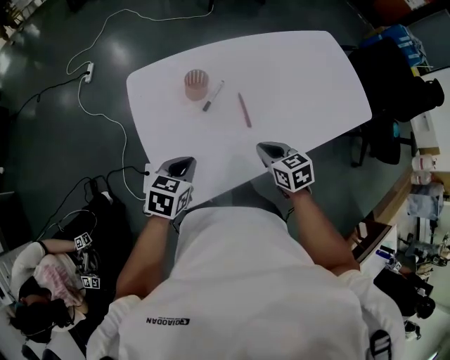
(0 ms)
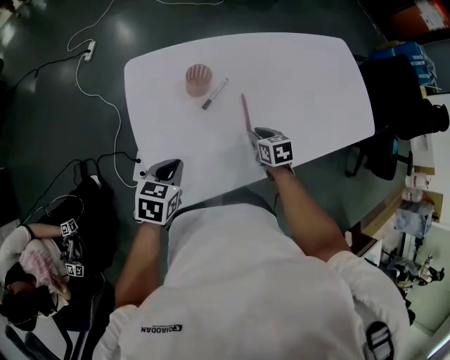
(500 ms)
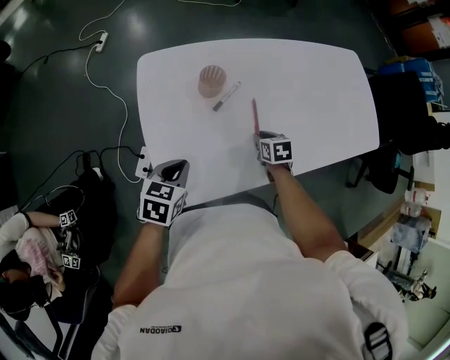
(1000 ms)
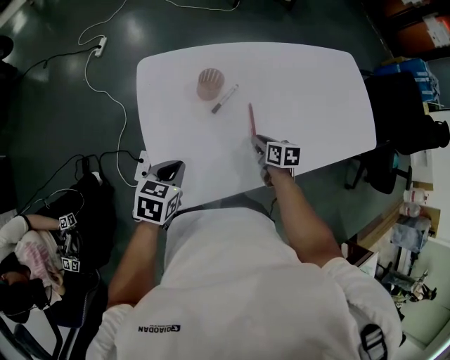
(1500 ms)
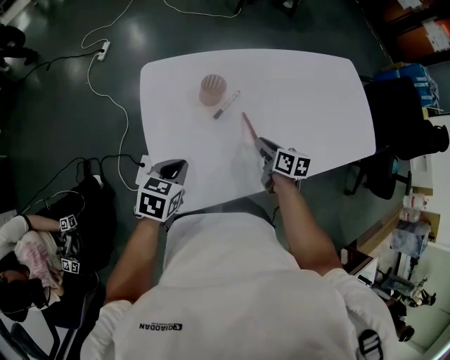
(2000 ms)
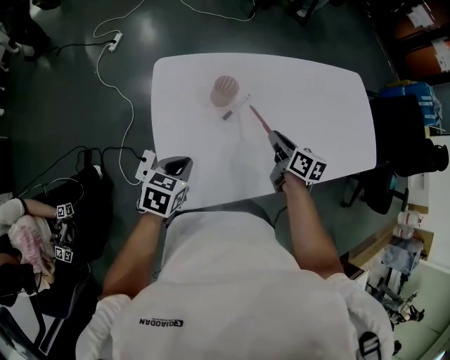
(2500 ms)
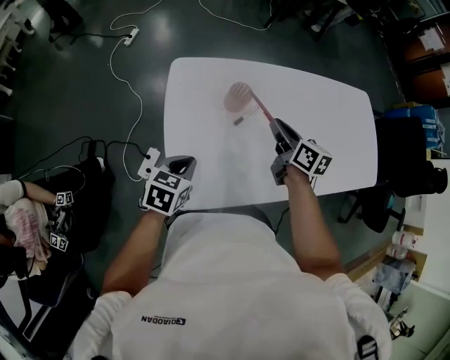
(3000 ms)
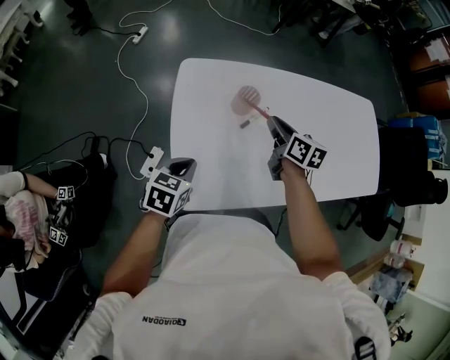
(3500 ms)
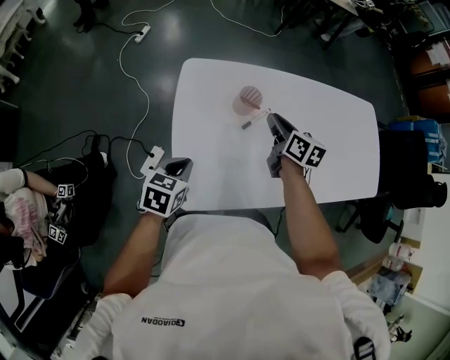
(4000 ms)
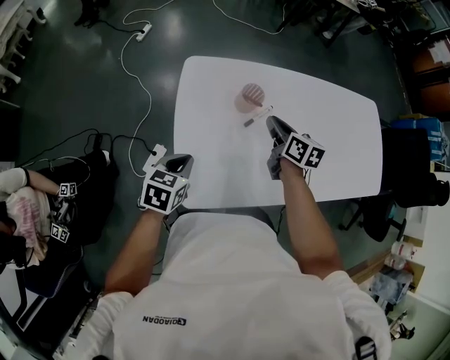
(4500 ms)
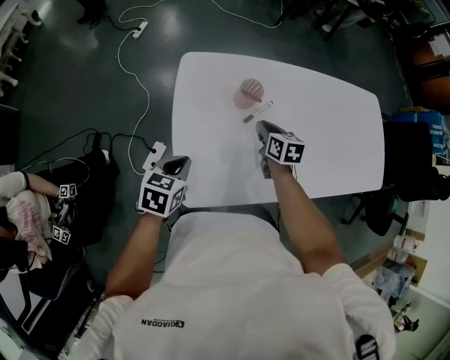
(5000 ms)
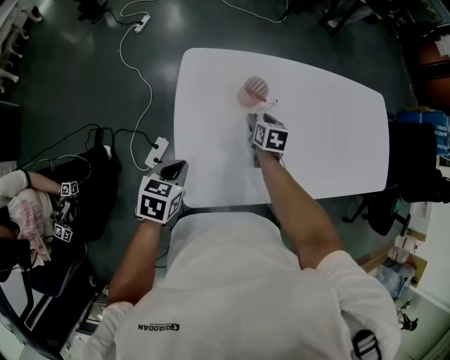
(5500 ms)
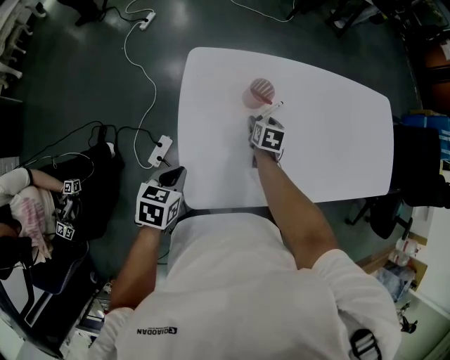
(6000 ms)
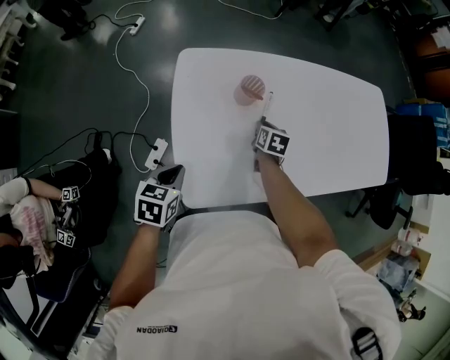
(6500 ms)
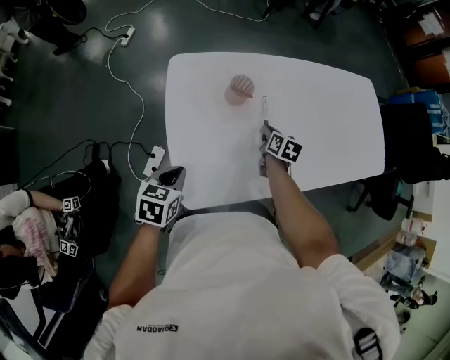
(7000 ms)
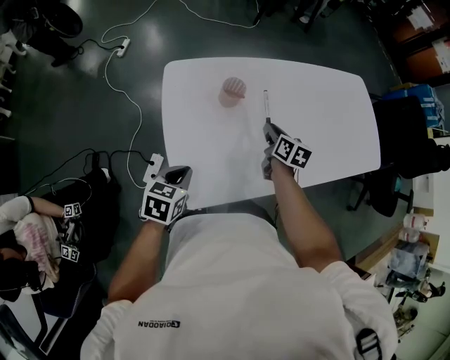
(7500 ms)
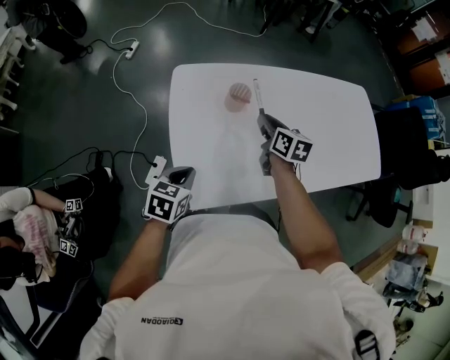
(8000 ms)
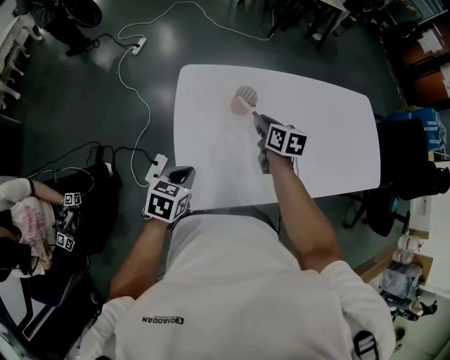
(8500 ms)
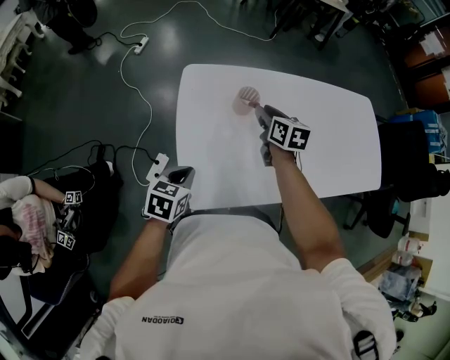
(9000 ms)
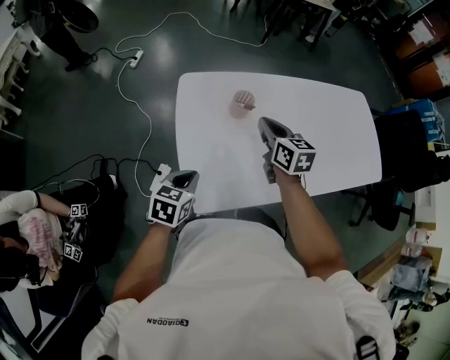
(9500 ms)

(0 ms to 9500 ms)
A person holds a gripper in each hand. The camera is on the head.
0 ms - 2000 ms: The right gripper moves forward, roughly 10 cm, and swivels roughly 30 degrees.
2000 ms - 4000 ms: The left gripper is displaced to the left by some 5 cm; the right gripper moves to the left, upward and forward, about 20 cm.
4000 ms - 5500 ms: The right gripper moves downward, about 15 cm, swivels roughly 20 degrees, and opens up.
5500 ms - 7500 ms: The right gripper shifts about 10 cm to the right and upward, swivels about 20 degrees, and closes up.
7500 ms - 9500 ms: The right gripper travels upward and to the left by about 15 cm, and turns by some 20 degrees.

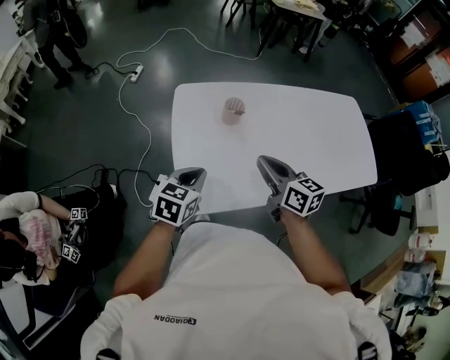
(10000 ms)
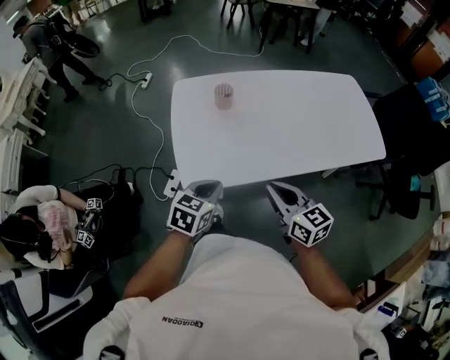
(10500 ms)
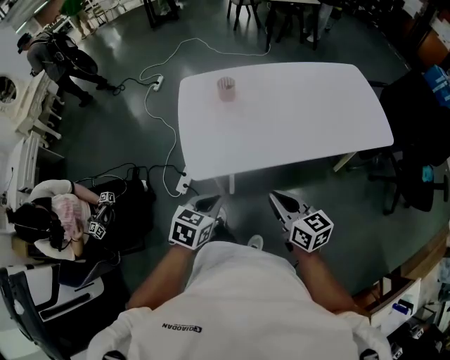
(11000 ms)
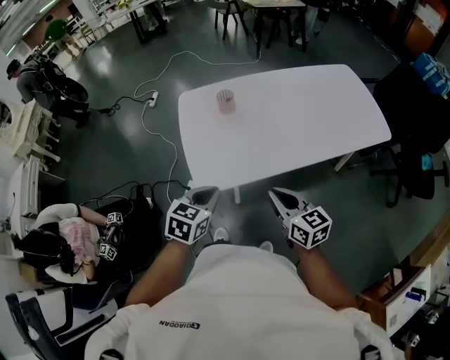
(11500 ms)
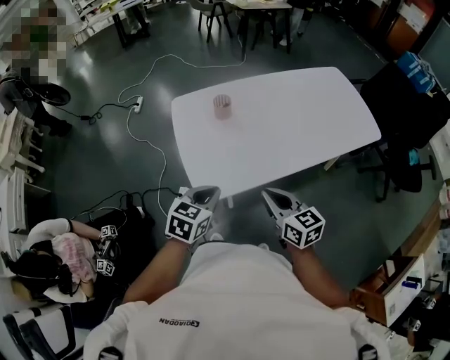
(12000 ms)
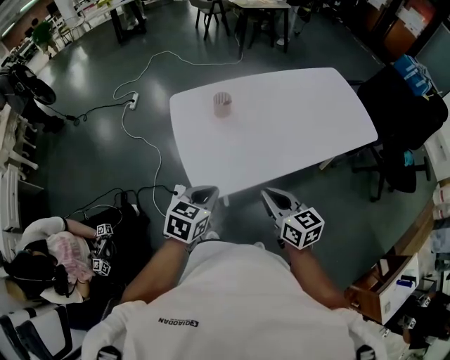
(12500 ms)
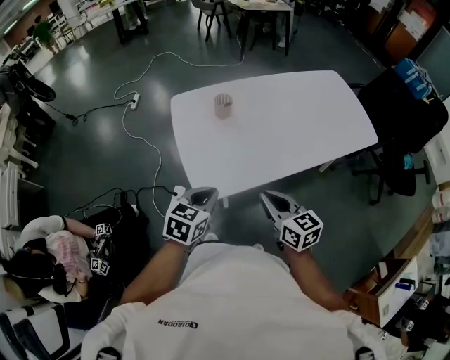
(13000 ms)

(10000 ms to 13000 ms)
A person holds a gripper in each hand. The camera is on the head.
10000 ms - 11500 ms: The right gripper goes some 25 cm backward. The left gripper is displaced backward and to the right by about 20 cm.
11500 ms - 13000 ms: The left gripper shifts by about 5 cm; the right gripper shifts roughly 5 cm to the left.

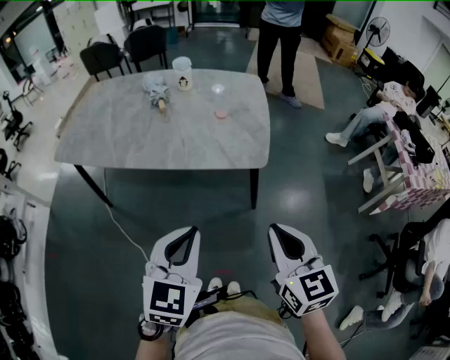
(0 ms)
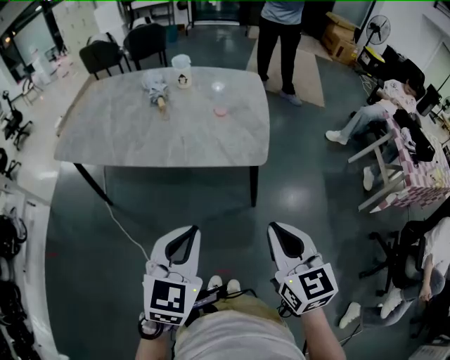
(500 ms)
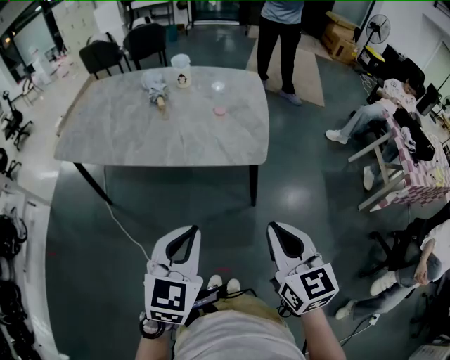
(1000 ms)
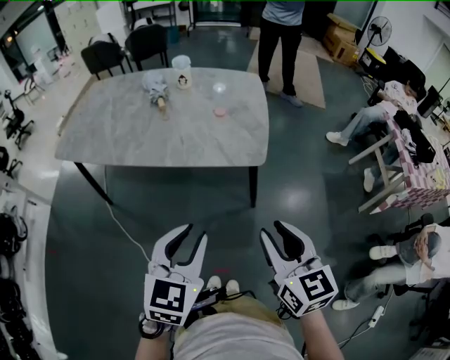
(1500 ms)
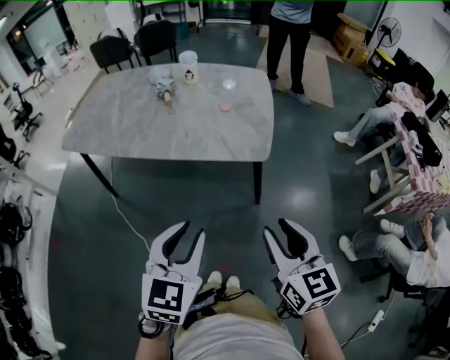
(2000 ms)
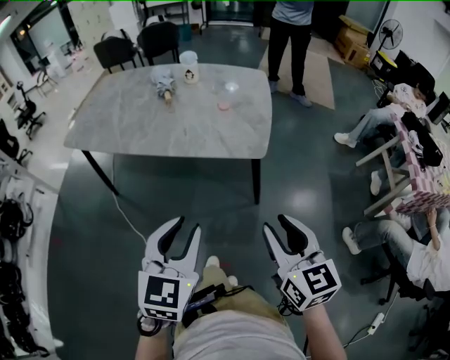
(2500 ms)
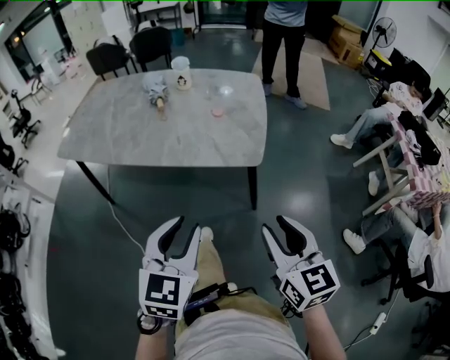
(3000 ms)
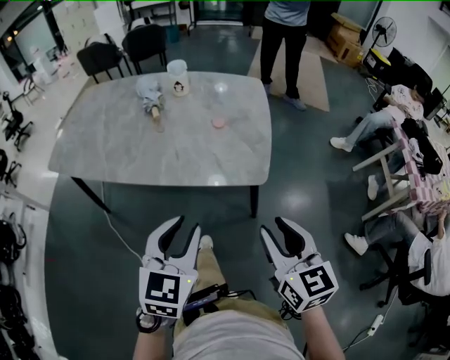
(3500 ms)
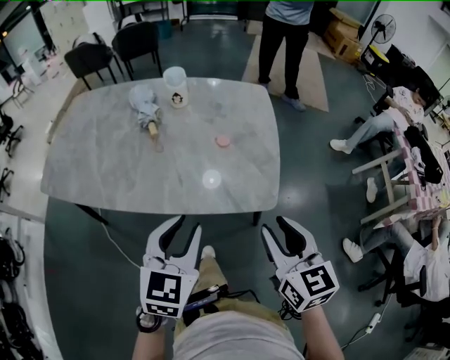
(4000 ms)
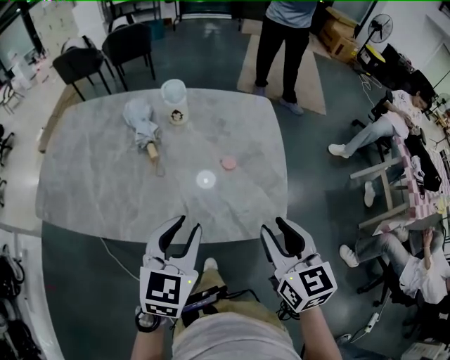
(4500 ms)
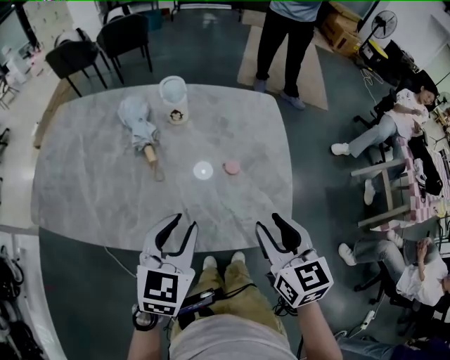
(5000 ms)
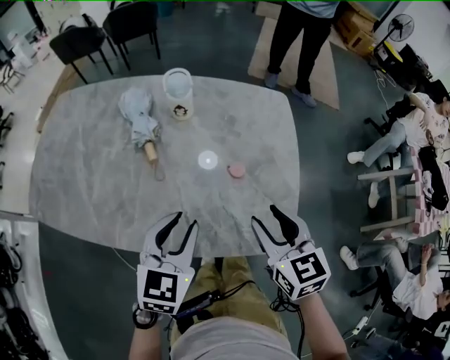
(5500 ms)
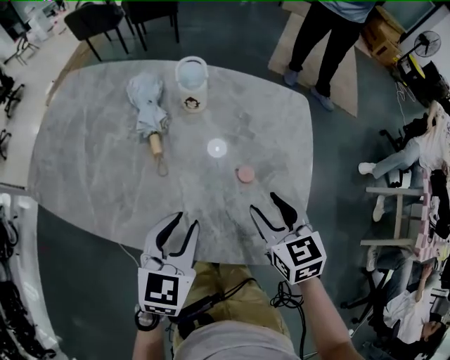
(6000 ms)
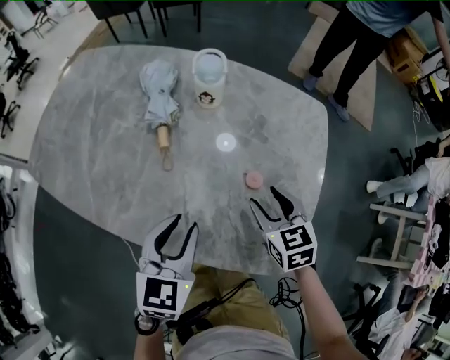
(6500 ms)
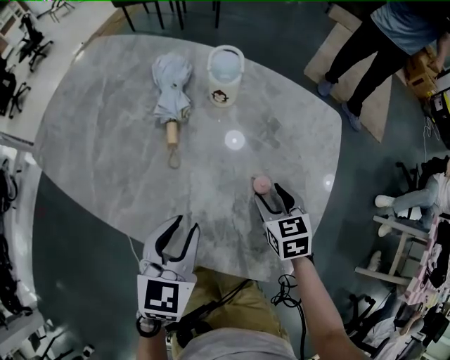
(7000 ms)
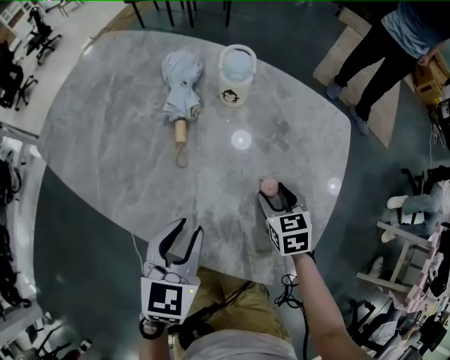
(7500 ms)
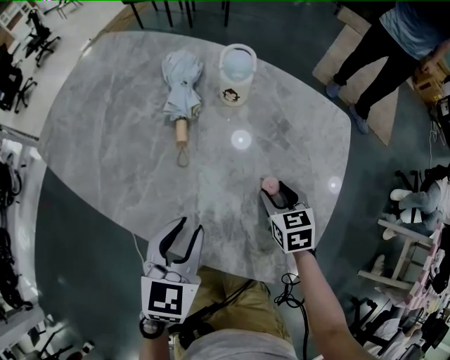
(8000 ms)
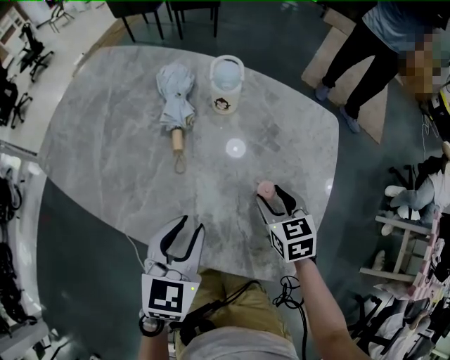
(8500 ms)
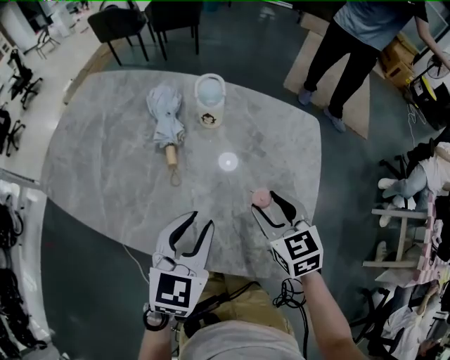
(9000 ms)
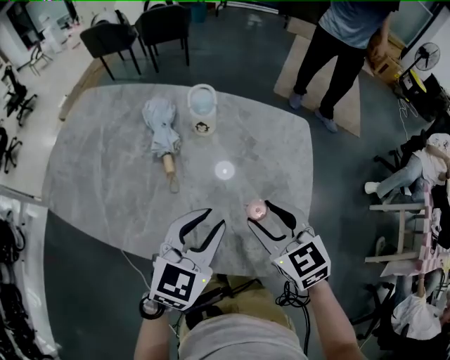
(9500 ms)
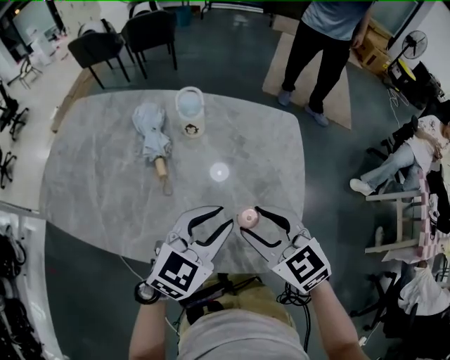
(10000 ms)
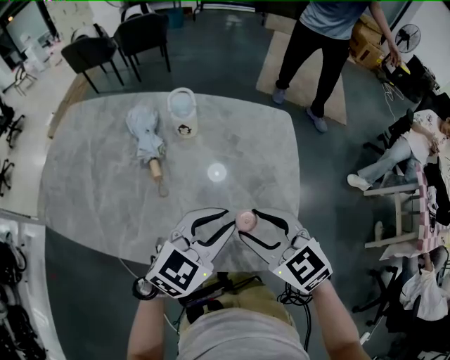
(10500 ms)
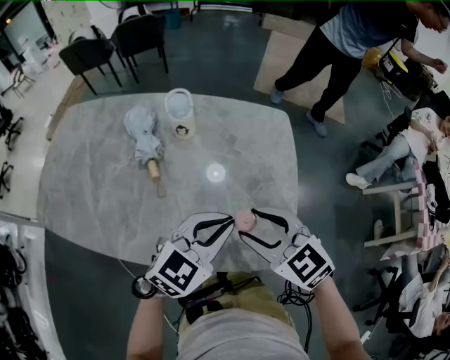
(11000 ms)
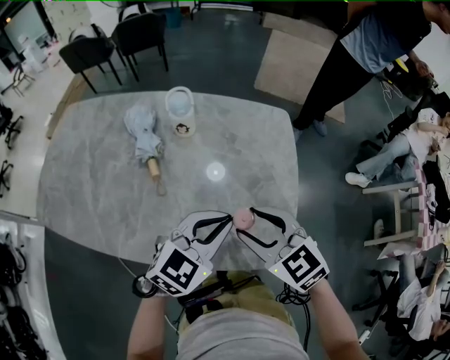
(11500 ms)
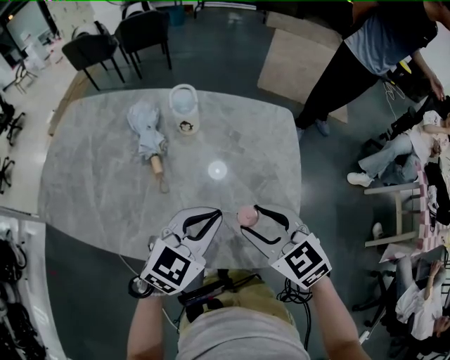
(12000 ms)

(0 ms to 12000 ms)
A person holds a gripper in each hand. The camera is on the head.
0 ms - 2000 ms: The right gripper opens. Meanwhile the left gripper opens up.
2000 ms - 4000 ms: Both grippers move forward, approximately 20 cm.
4000 ms - 6000 ms: The grippers both shift forward by about 20 cm. The right gripper swivels some 20 degrees.
6000 ms - 8000 ms: The right gripper heads downward and forward, covering about 15 cm.
8000 ms - 10000 ms: The left gripper shifts approximately 10 cm to the right and upward, and swivels approximately 40 degrees; the right gripper goes approximately 20 cm upward and backward, and turns by roughly 20 degrees.
10000 ms - 12000 ms: The left gripper closes.

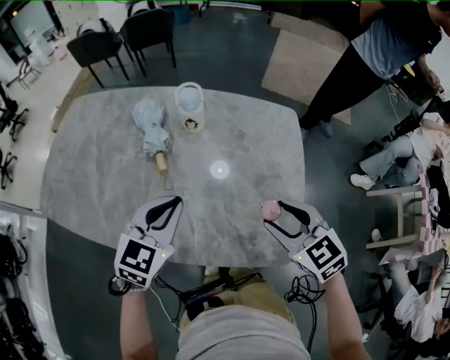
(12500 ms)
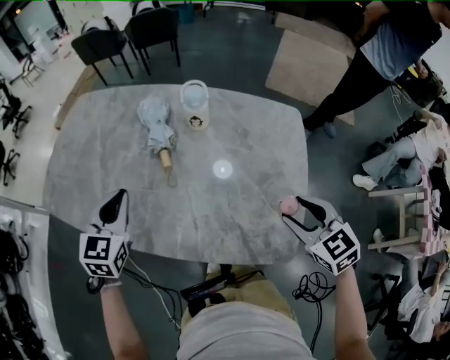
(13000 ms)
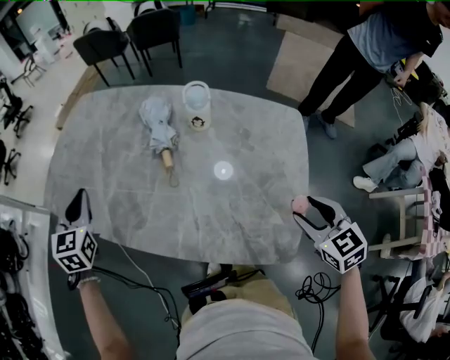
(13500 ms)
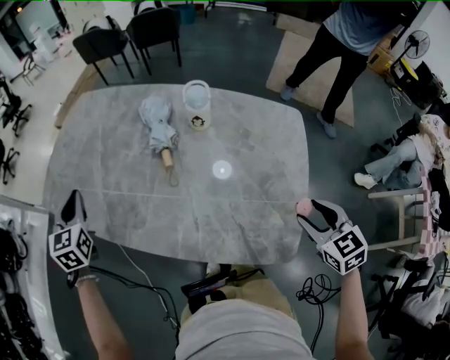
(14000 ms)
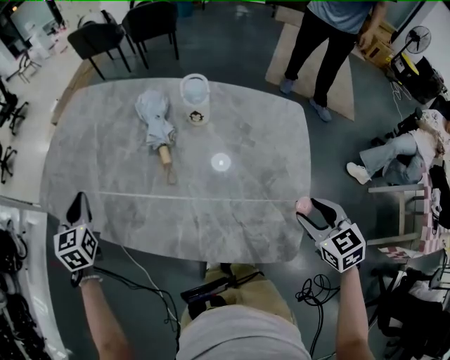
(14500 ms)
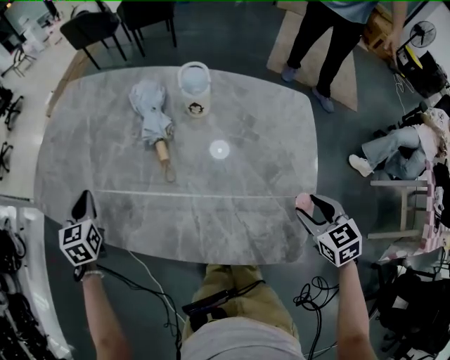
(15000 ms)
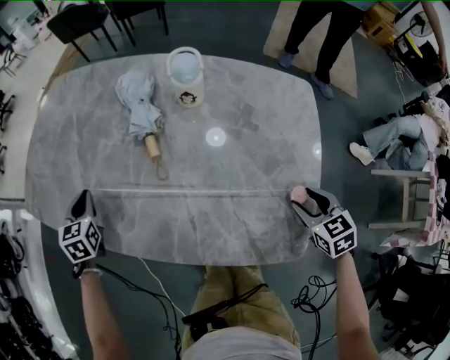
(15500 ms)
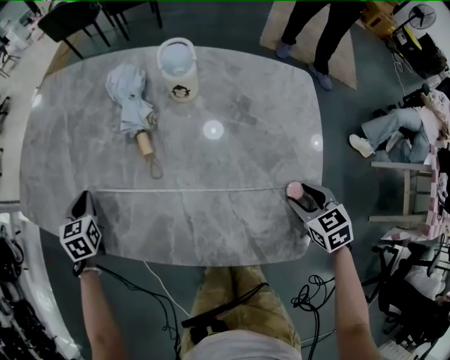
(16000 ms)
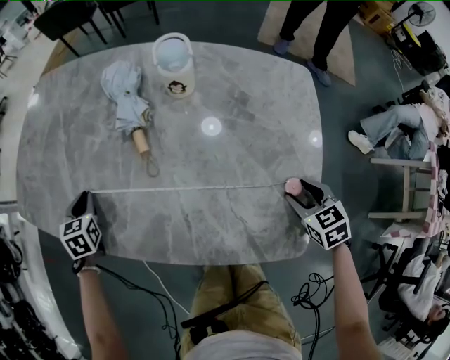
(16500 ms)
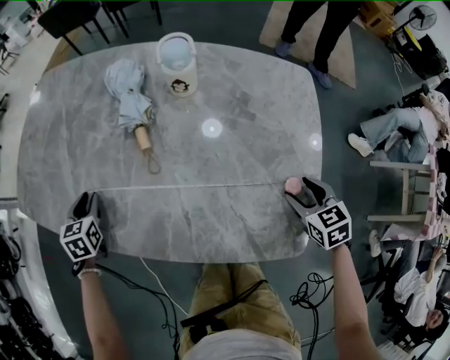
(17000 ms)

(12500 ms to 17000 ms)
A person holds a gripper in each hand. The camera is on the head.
12500 ms - 14500 ms: The right gripper heads to the right, covering some 10 cm. Meanwhile the left gripper is displaced to the left by some 30 cm, and swivels about 40 degrees.
14500 ms - 17000 ms: Both grippers travel together downward, about 15 cm. The left gripper opens.
